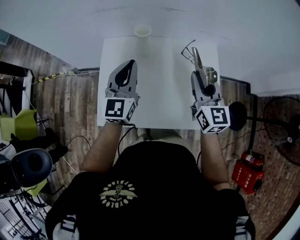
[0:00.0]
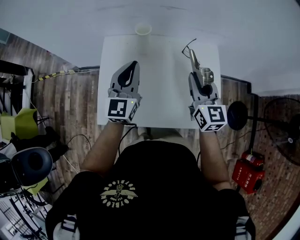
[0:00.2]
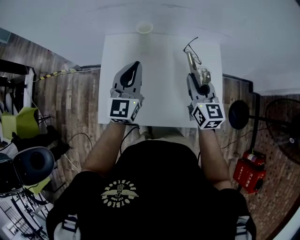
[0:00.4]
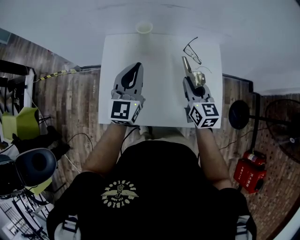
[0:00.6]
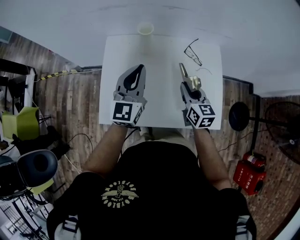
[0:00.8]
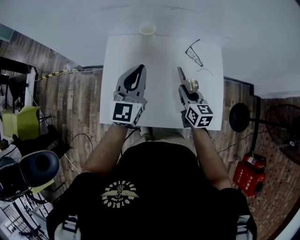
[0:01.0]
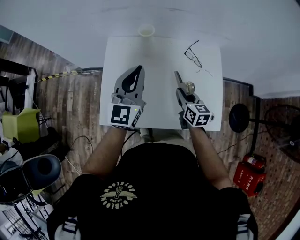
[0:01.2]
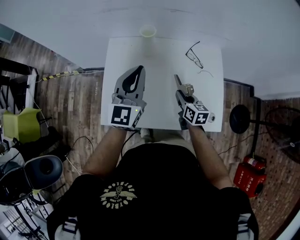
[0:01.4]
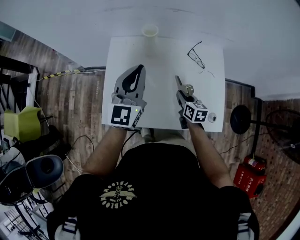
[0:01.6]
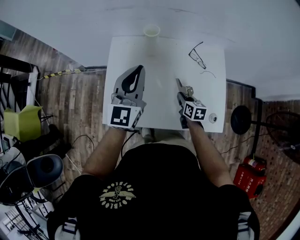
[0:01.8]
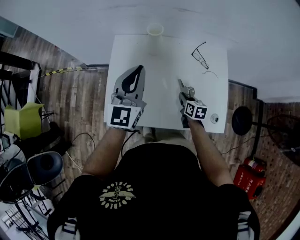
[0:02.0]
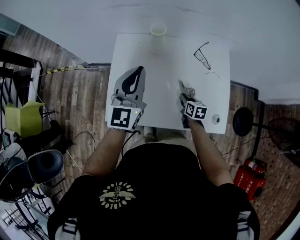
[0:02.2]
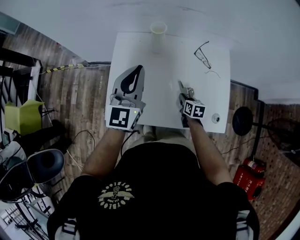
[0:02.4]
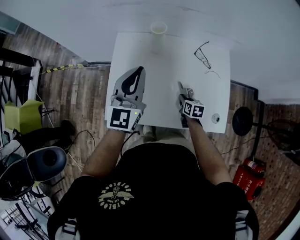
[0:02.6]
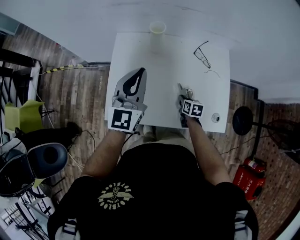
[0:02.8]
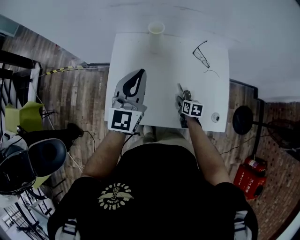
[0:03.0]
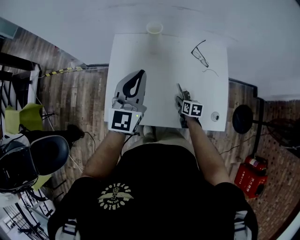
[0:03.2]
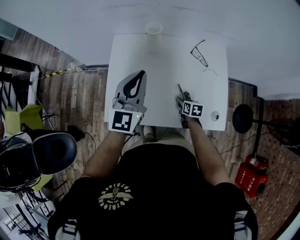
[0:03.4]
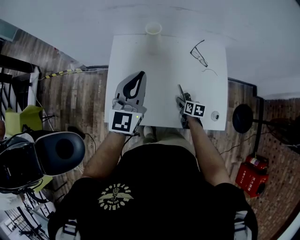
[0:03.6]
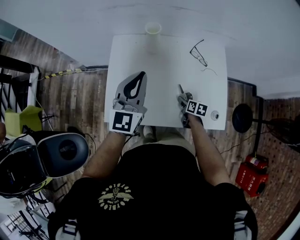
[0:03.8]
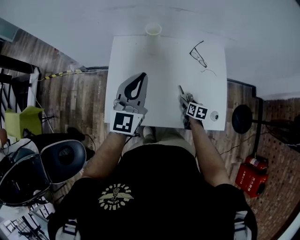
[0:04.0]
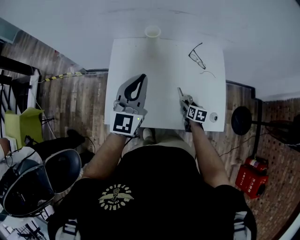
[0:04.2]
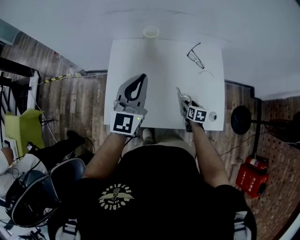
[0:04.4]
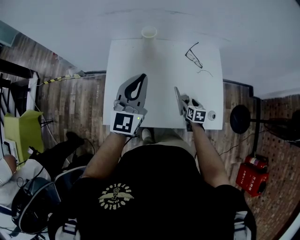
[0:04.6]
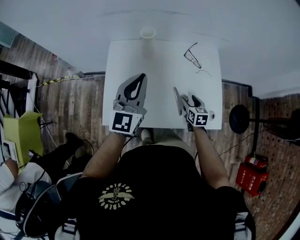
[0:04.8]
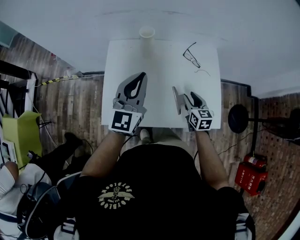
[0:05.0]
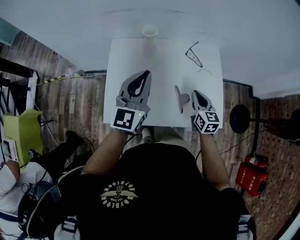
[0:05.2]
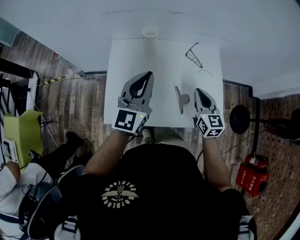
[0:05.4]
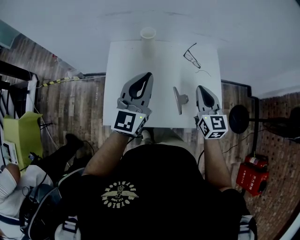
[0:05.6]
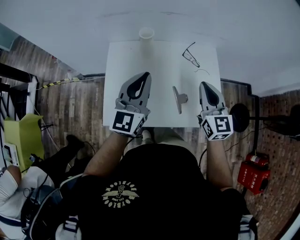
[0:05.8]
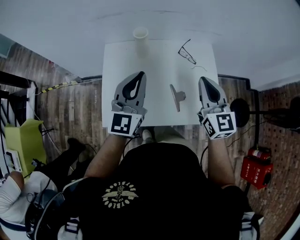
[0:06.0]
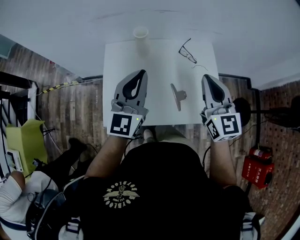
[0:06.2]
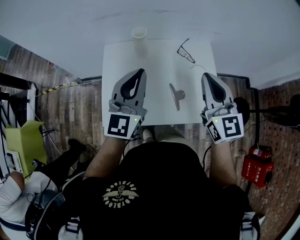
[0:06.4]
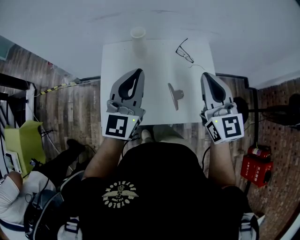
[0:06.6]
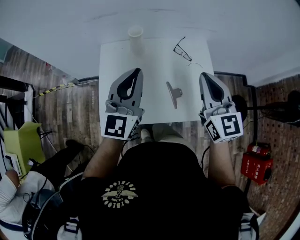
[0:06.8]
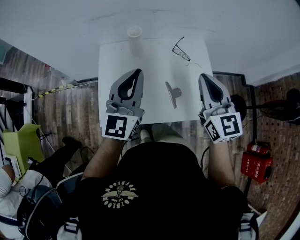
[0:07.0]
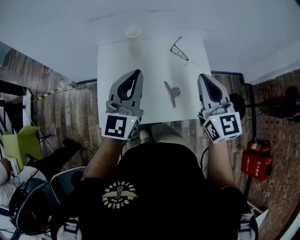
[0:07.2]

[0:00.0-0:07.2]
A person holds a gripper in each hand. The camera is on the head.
0:00.0 to 0:01.4: The right gripper shifts approximately 20 cm downward, and changes its angle by approximately 30 degrees.
0:01.4 to 0:02.8: The right gripper moves downward, about 15 cm.
0:02.8 to 0:04.4: The right gripper shifts about 5 cm to the right, and opens.
0:04.4 to 0:05.8: The right gripper is displaced upward by some 35 cm, tilts its fingers some 40 degrees upward, and closes its fingers.
0:05.8 to 0:07.2: The left gripper ends up about 5 cm from where it was, while the right gripper goes about 10 cm upward.

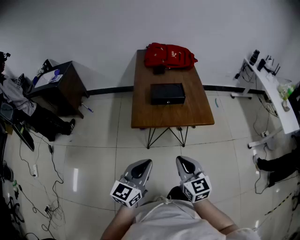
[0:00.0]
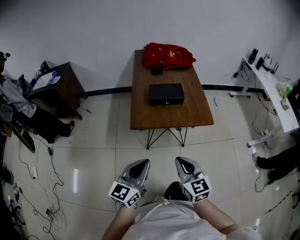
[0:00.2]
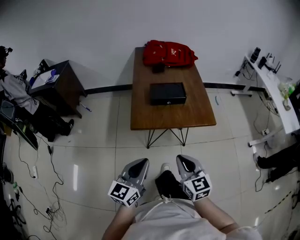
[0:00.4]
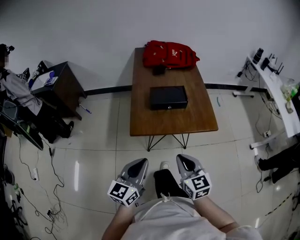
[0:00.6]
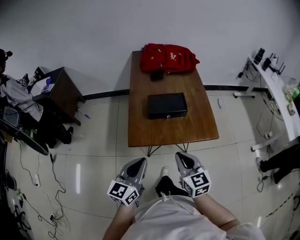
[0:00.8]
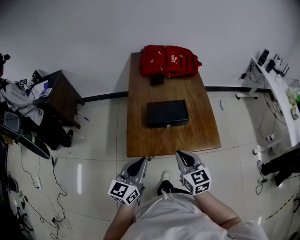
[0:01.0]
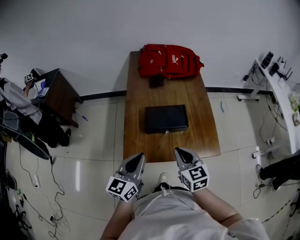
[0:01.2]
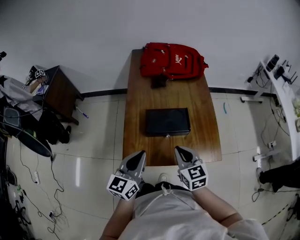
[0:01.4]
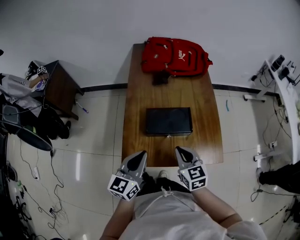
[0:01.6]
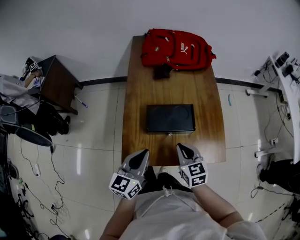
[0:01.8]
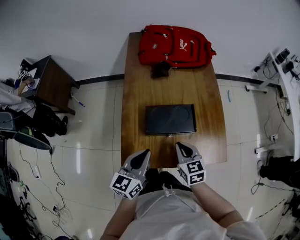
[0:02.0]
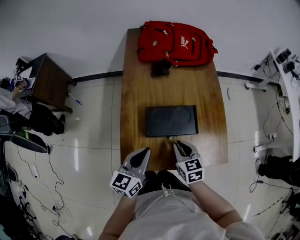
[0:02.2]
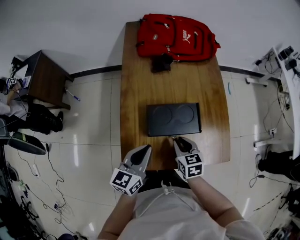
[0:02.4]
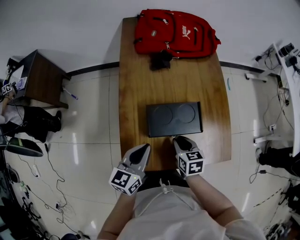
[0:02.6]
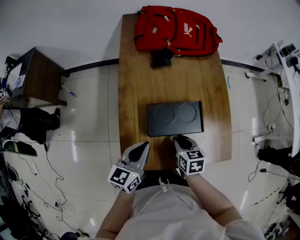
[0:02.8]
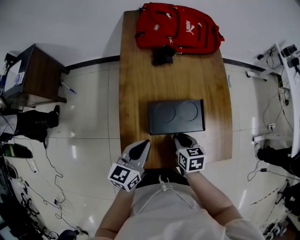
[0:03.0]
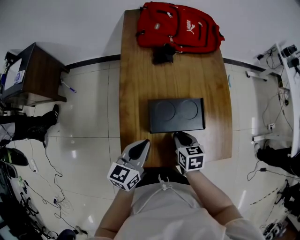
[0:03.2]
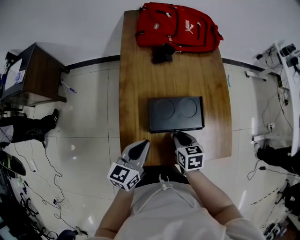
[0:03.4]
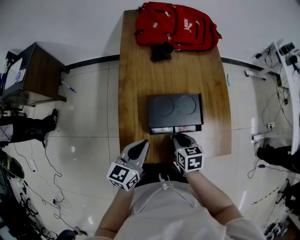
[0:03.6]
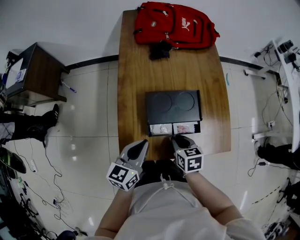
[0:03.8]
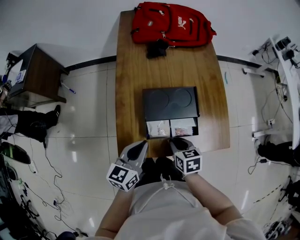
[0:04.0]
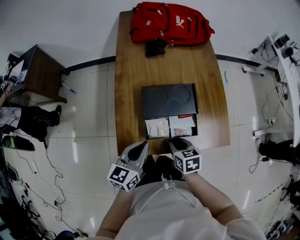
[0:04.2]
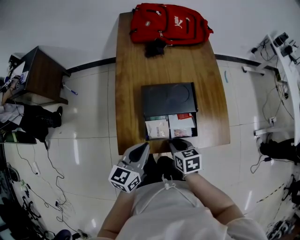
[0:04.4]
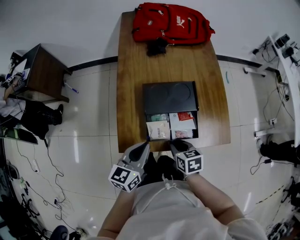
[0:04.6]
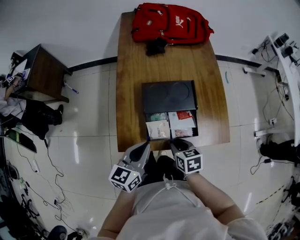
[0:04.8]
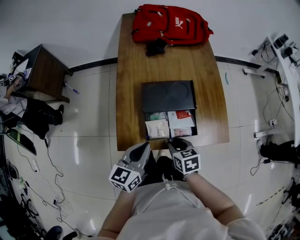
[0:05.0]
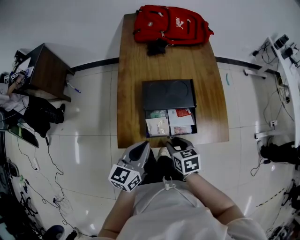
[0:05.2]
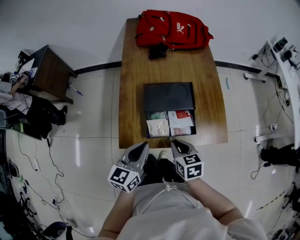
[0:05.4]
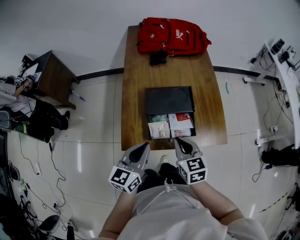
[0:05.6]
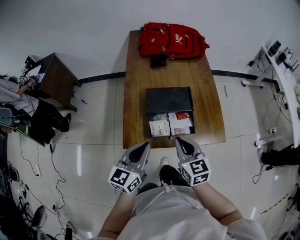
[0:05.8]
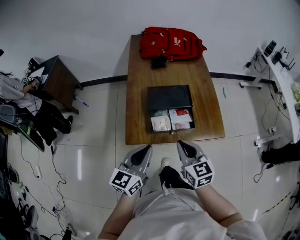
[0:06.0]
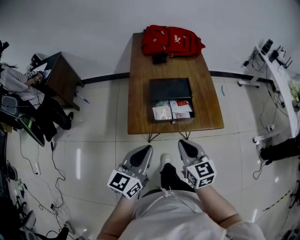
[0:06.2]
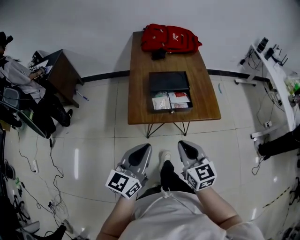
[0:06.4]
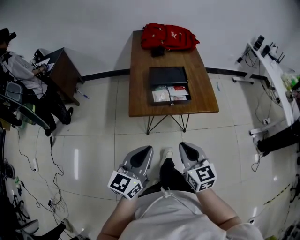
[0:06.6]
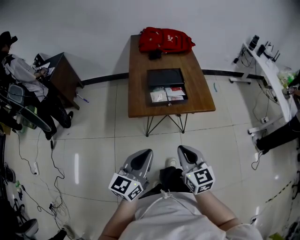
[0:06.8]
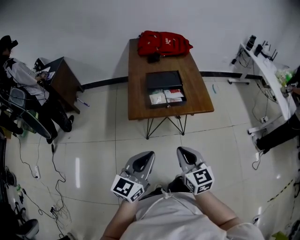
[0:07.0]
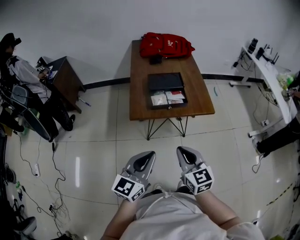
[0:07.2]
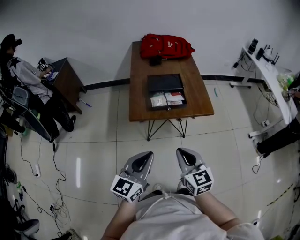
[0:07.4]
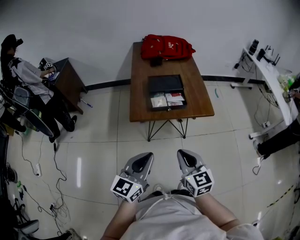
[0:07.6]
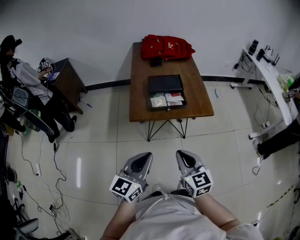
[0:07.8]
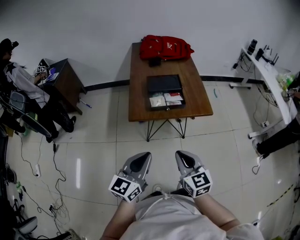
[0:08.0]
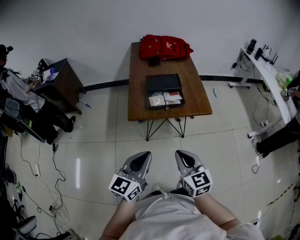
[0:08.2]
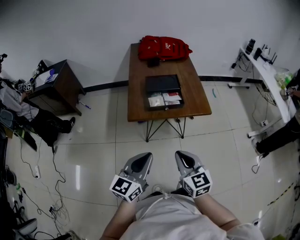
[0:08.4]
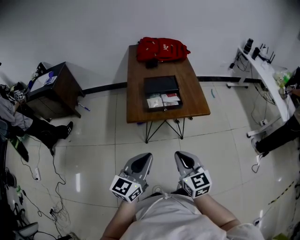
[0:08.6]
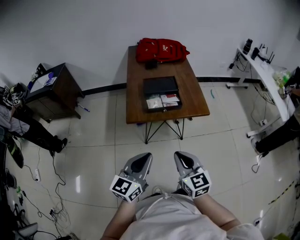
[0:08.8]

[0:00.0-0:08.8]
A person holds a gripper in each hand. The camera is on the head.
0:00.0 to 0:01.4: The two grippers go some 35 cm forward.
0:01.4 to 0:03.0: Both grippers travel together downward and forward, approximately 15 cm. The right gripper rotates some 30 degrees.
0:03.0 to 0:04.4: Both grippers move backward, some 10 cm.
0:04.4 to 0:05.8: The left gripper travels upward by some 10 cm; the right gripper is displaced upward by about 15 cm, and changes its angle by about 30 degrees.
0:05.8 to 0:07.4: The two grippers go roughly 30 cm backward.
0:07.4 to 0:08.8: There are only small adjustments of the grippers.

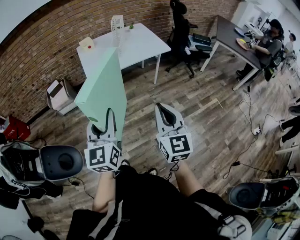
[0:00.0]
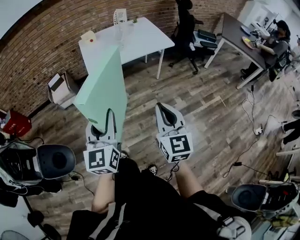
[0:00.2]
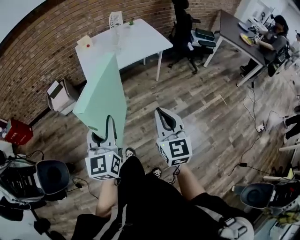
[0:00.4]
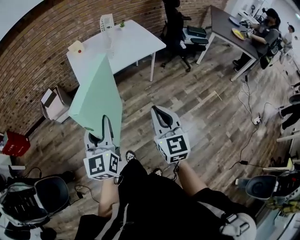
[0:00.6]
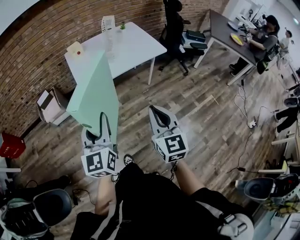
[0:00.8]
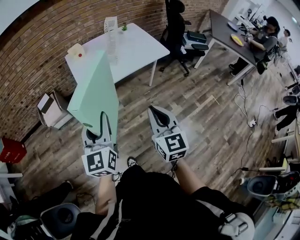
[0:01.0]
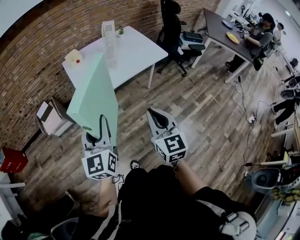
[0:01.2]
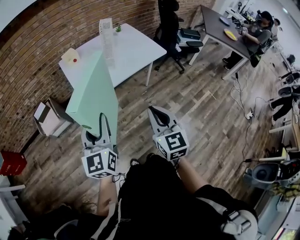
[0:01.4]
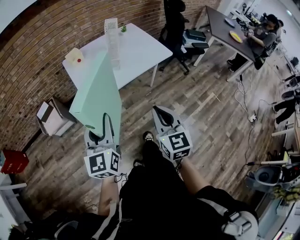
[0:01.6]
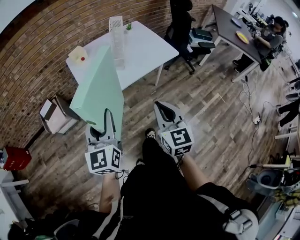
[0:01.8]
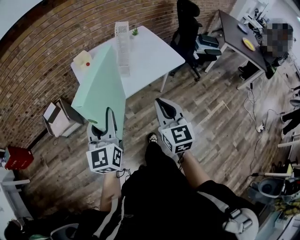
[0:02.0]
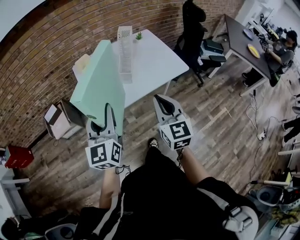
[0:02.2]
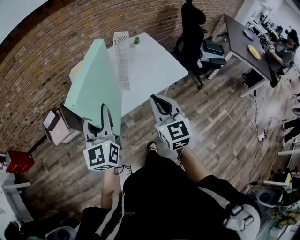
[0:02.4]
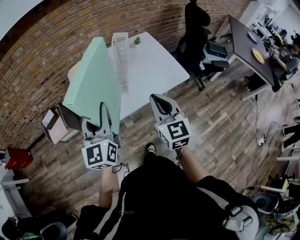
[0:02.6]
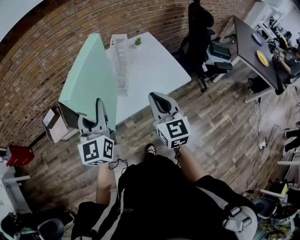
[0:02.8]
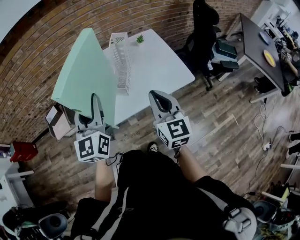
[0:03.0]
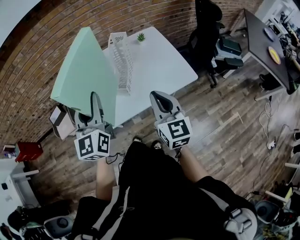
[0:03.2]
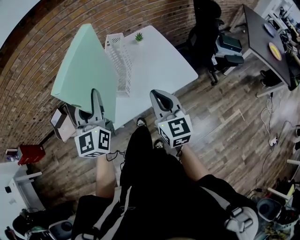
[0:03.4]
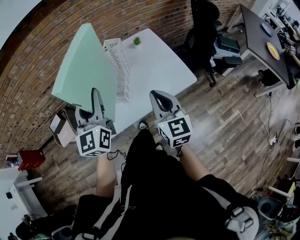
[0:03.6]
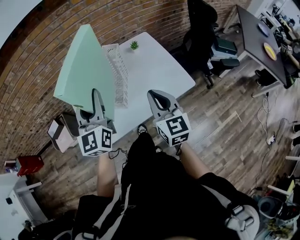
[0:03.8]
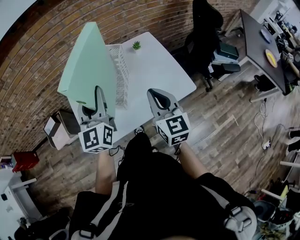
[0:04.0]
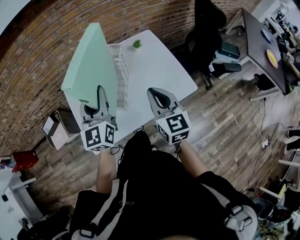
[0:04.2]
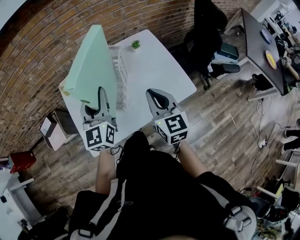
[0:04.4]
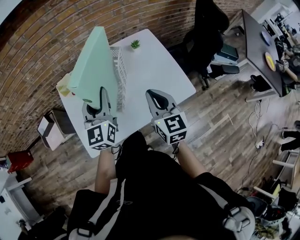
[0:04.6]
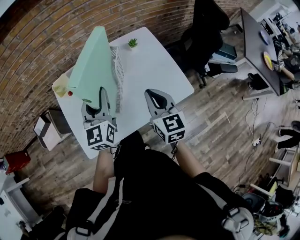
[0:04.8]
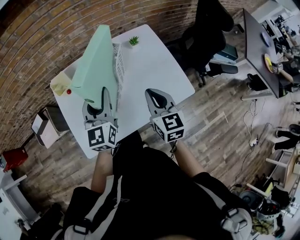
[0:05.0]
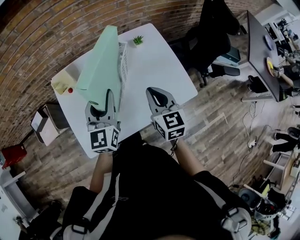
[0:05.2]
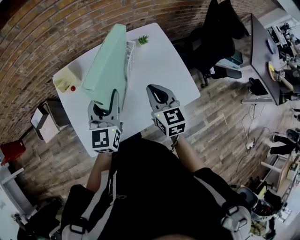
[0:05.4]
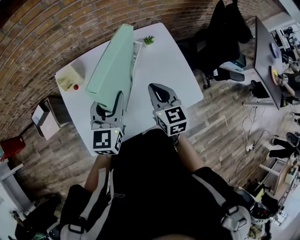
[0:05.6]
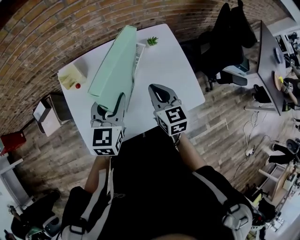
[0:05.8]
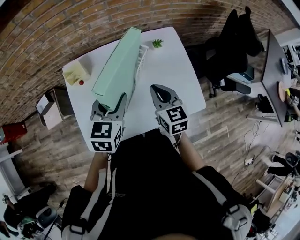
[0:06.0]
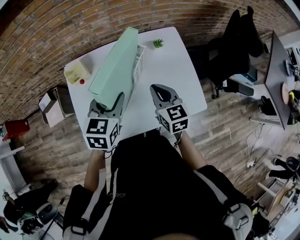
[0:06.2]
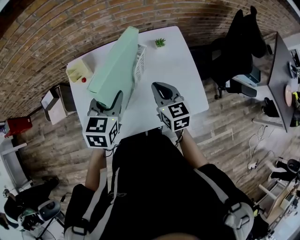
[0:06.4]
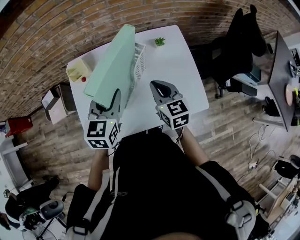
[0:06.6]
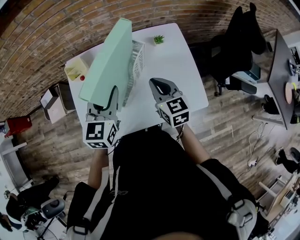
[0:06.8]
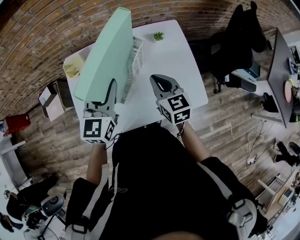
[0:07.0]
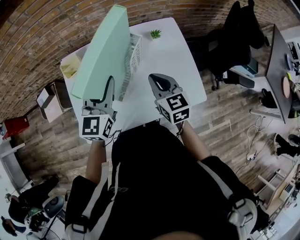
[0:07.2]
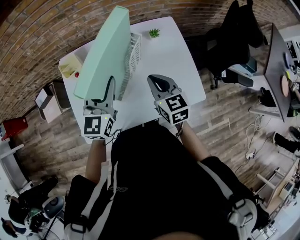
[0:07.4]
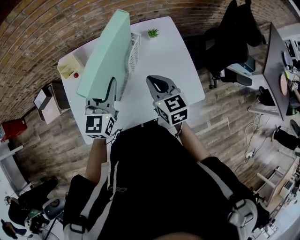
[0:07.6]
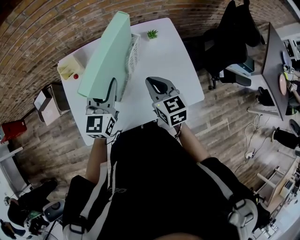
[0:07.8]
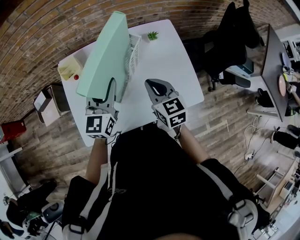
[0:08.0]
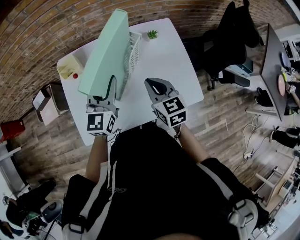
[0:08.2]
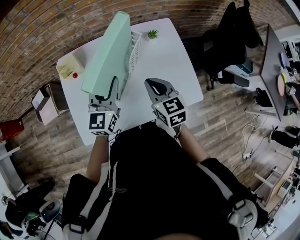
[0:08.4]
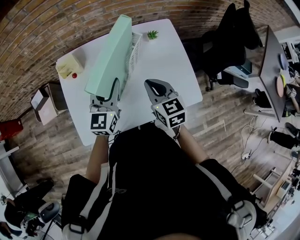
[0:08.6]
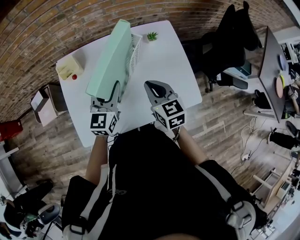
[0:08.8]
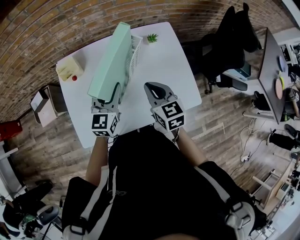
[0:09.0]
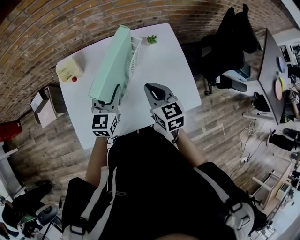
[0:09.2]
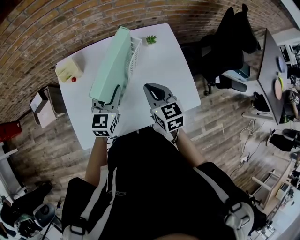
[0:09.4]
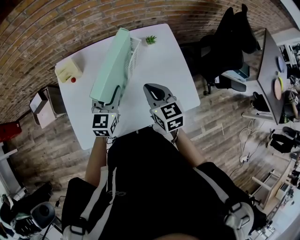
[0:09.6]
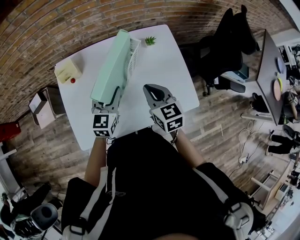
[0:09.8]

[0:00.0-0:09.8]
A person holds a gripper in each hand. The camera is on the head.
0:00.0 to 0:01.4: Both grippers travel together forward and to the left, roughly 25 cm.
0:01.4 to 0:02.8: The grippers both shift forward by about 30 cm.
0:02.8 to 0:04.2: Both grippers travel together forward, approximately 20 cm.
0:04.2 to 0:05.6: The right gripper shifts some 15 cm forward and downward. Meanwhile the left gripper travels downward and forward by roughly 10 cm.
0:07.0 to 0:08.4: The left gripper goes about 5 cm downward.
0:08.4 to 0:09.8: The left gripper travels downward by some 5 cm.
